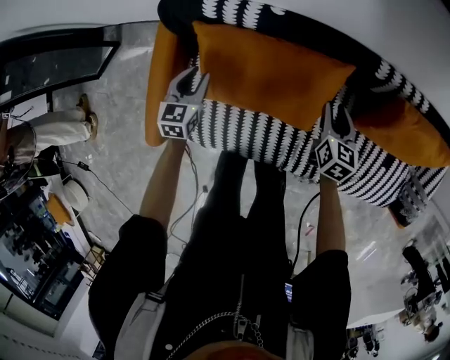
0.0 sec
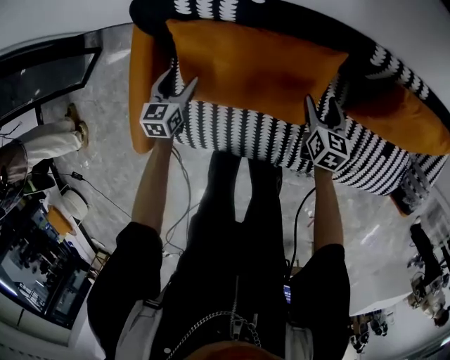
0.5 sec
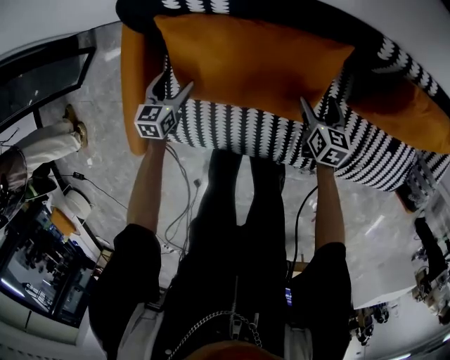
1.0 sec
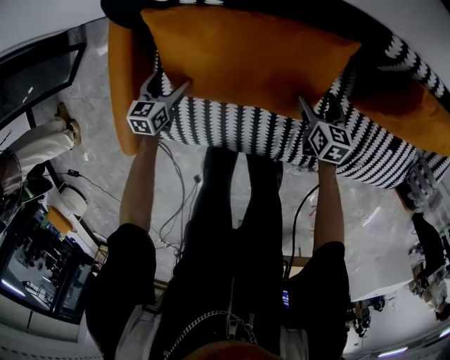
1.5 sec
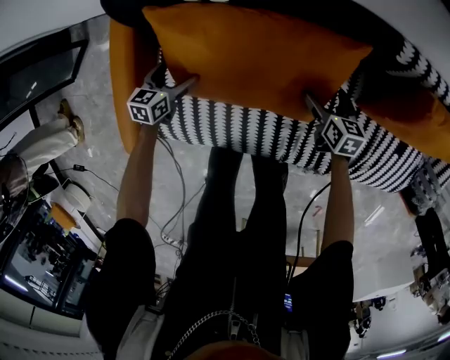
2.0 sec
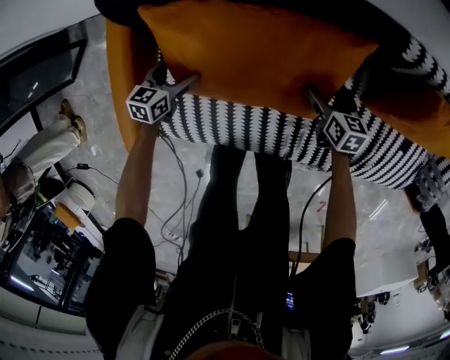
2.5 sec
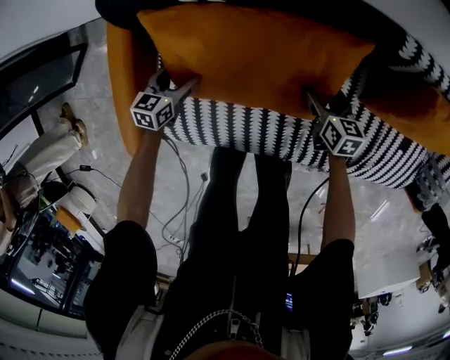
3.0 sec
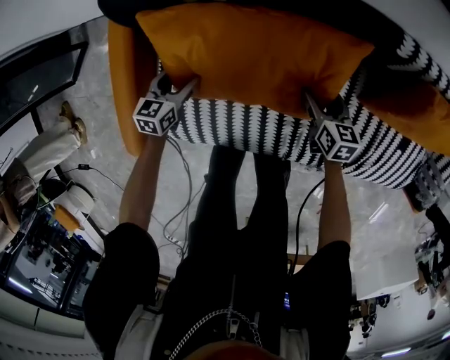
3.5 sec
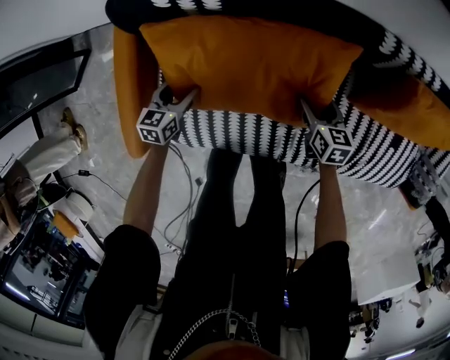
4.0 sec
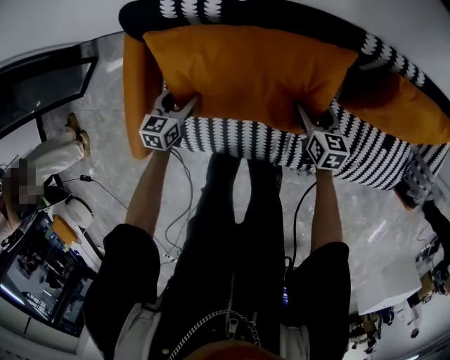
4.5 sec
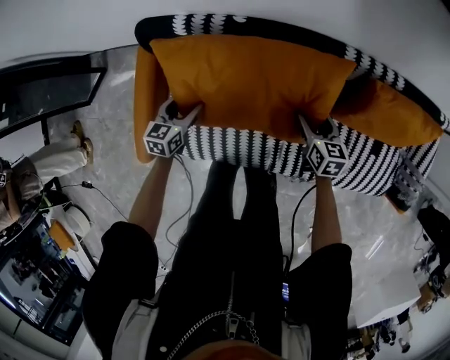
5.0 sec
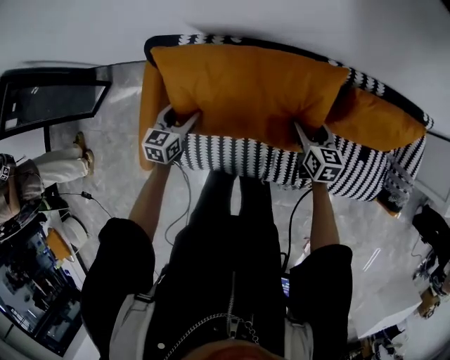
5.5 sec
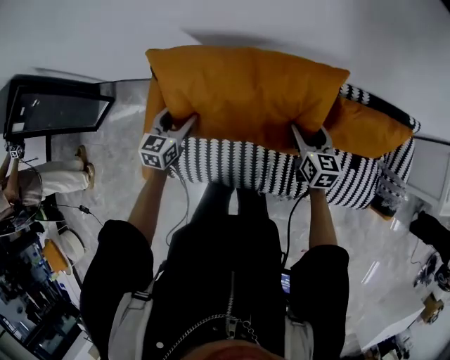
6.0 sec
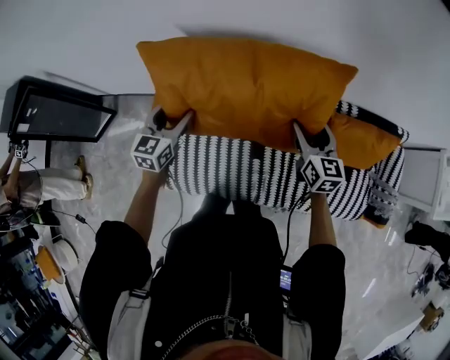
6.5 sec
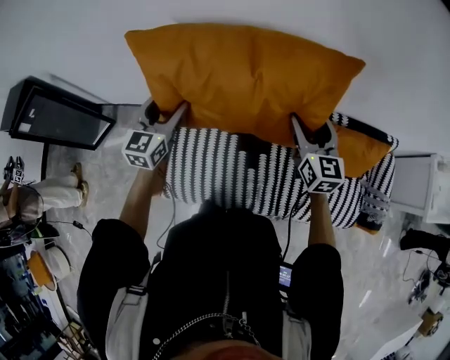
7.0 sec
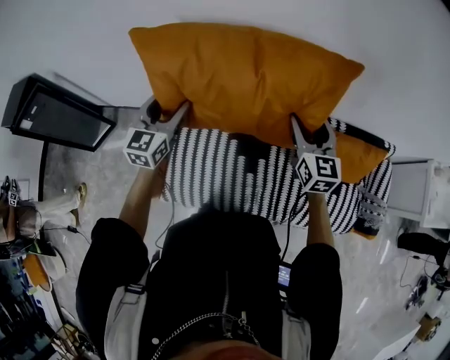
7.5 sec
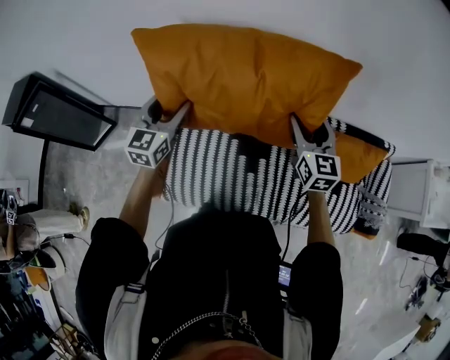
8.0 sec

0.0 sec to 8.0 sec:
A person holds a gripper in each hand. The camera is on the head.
0.0 sec to 2.0 sec: Both grippers move downward, approximately 20 cm. The left gripper changes its angle by about 20 degrees, and opens up, while the right gripper swivels some 20 degrees, and opens its fingers.
2.0 sec to 4.0 sec: The left gripper shifts by about 5 cm, and closes up. The right gripper moves about 5 cm, and closes up.
4.0 sec to 6.0 sec: Both grippers move upward, approximately 30 cm.
6.0 sec to 8.0 sec: Both grippers travel together upward, some 20 cm. The right gripper swivels approximately 20 degrees. The left gripper rotates roughly 20 degrees.

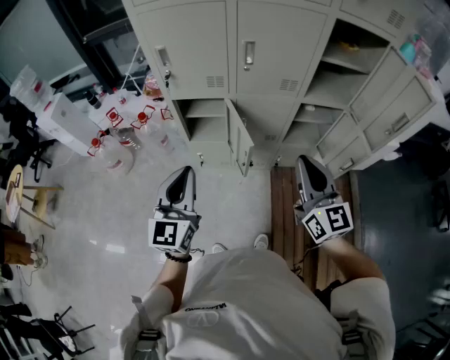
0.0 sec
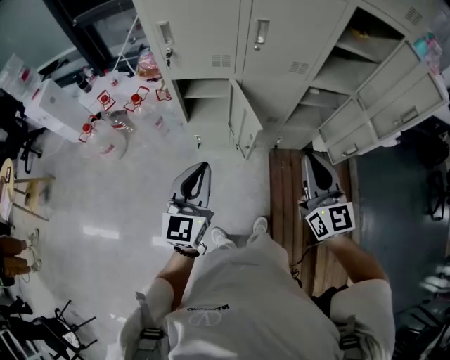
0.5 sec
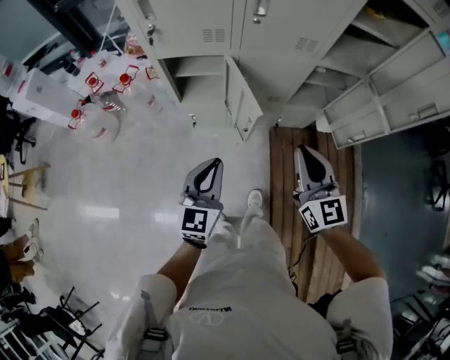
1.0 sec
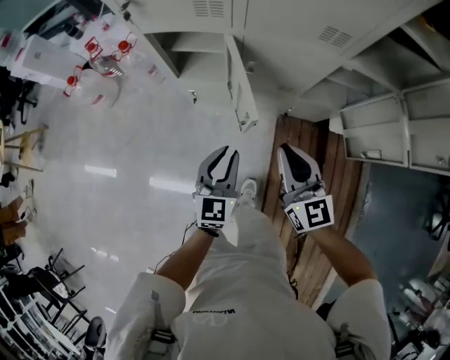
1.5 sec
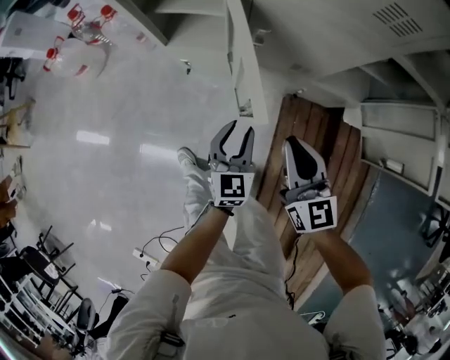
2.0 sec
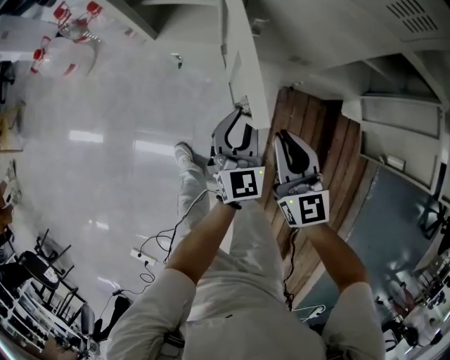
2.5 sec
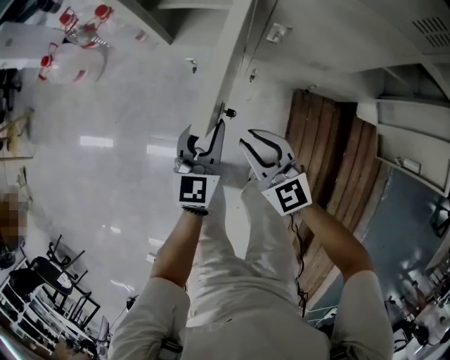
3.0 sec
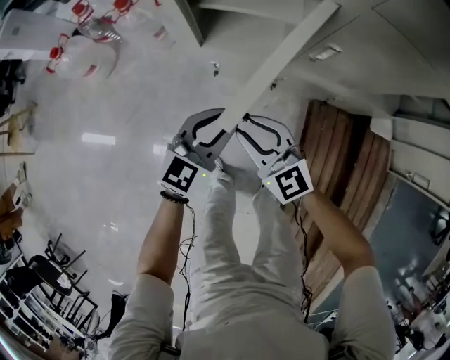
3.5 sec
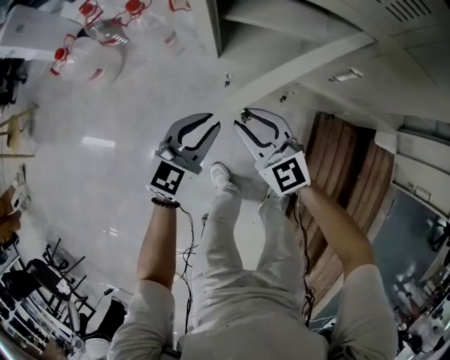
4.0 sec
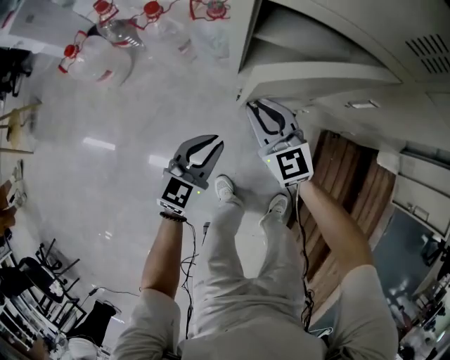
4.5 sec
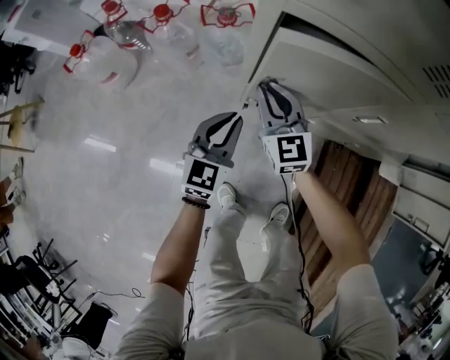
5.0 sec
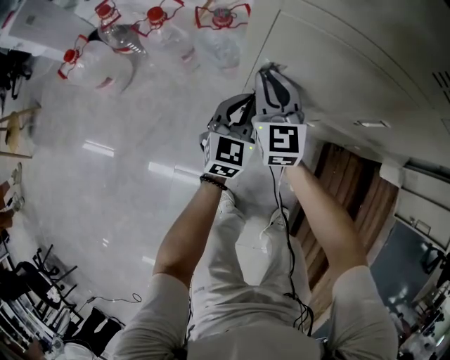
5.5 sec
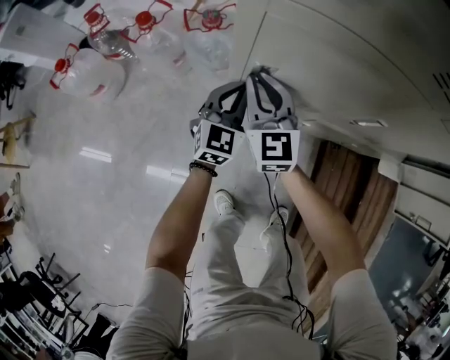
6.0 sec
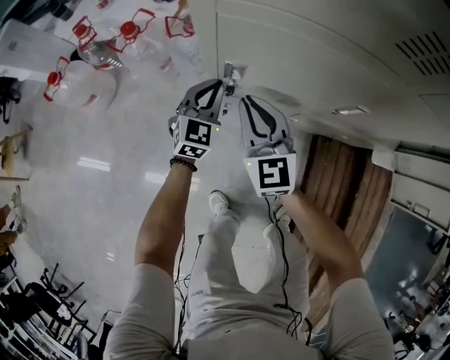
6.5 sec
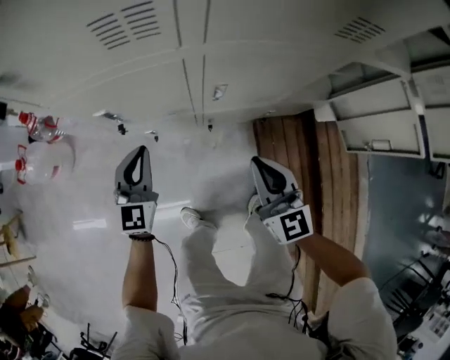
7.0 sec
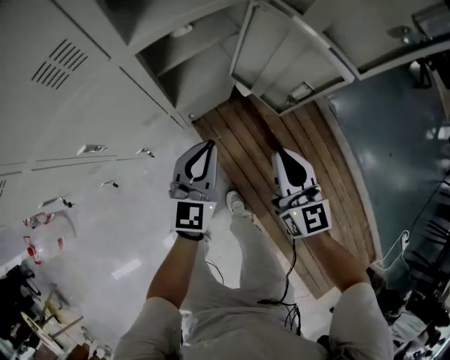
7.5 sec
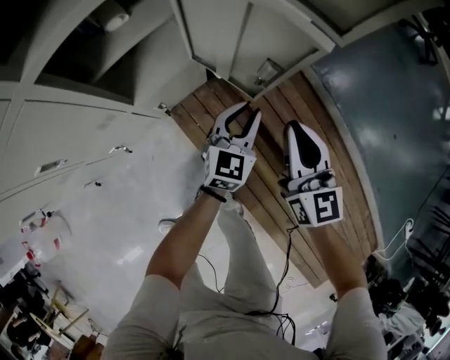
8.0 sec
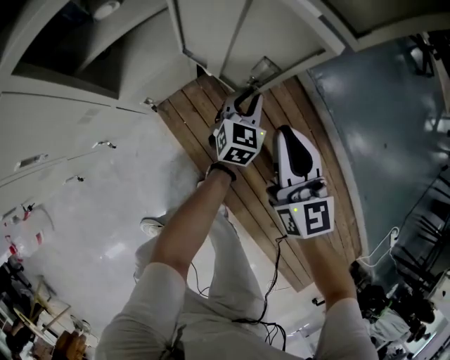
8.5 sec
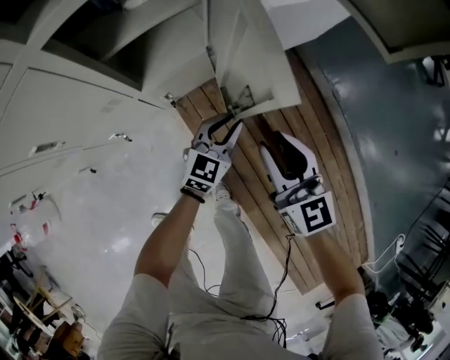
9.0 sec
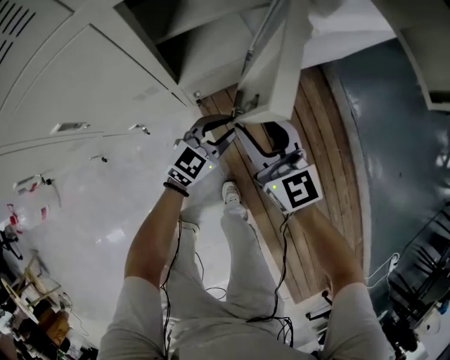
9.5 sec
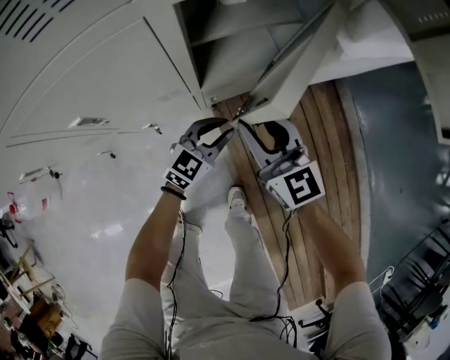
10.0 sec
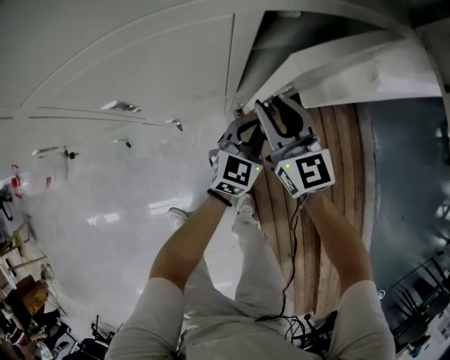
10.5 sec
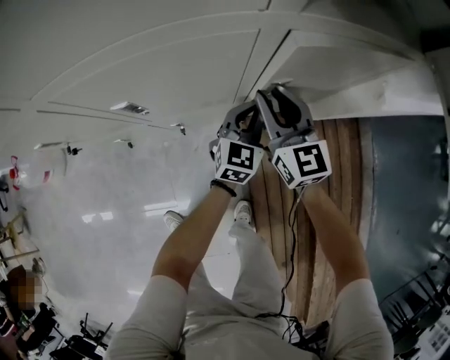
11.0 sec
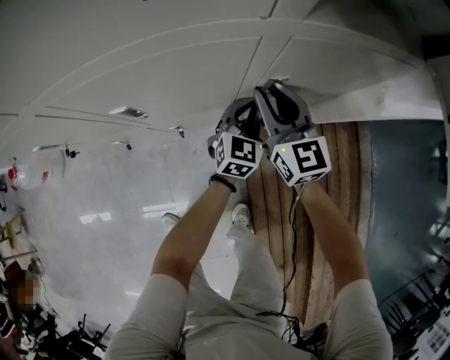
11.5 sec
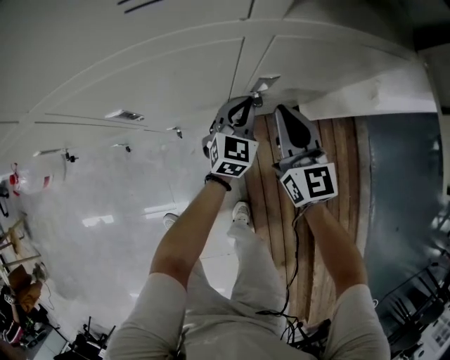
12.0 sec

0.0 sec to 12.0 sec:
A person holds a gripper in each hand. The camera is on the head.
0.0 sec to 2.0 sec: The left gripper heads downward, covering roughly 40 cm, rotates about 30 degrees, and opens up; the right gripper moves downward and forward, roughly 35 cm, and rotates about 20 degrees.
2.0 sec to 4.0 sec: Both grippers move to the left and forward, some 30 cm. The right gripper rotates some 30 degrees, and opens its fingers; the left gripper swivels about 30 degrees.
4.0 sec to 6.0 sec: Both grippers move forward, approximately 20 cm. The right gripper rotates about 30 degrees.
6.0 sec to 8.0 sec: The two grippers travel together, roughly 90 cm. The left gripper turns by approximately 50 degrees. Meanwhile the right gripper rotates some 50 degrees.
8.0 sec to 10.0 sec: Both grippers travel together to the left, approximately 25 cm. The right gripper rotates some 30 degrees, and opens.
10.0 sec to 12.0 sec: The left gripper heads forward, covering roughly 15 cm, and changes its angle by some 30 degrees. The right gripper heads forward, covering approximately 5 cm, and closes.

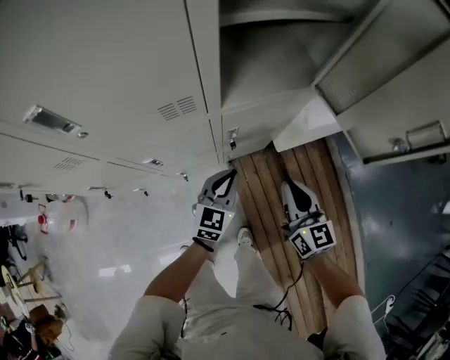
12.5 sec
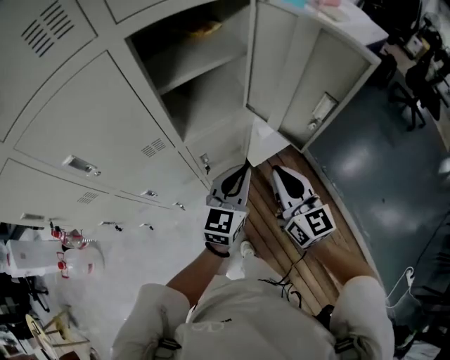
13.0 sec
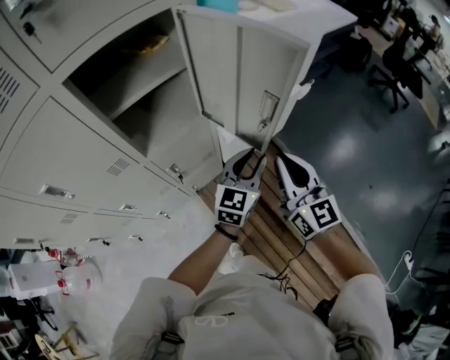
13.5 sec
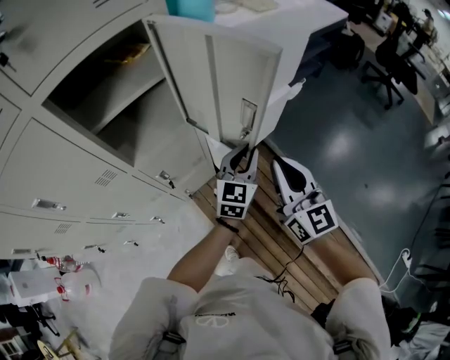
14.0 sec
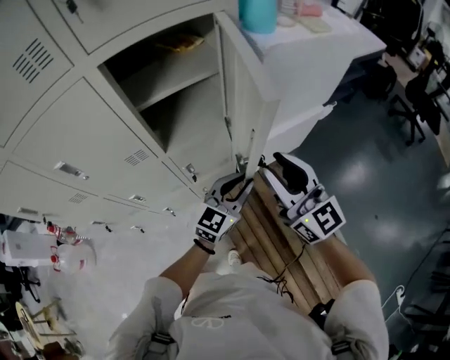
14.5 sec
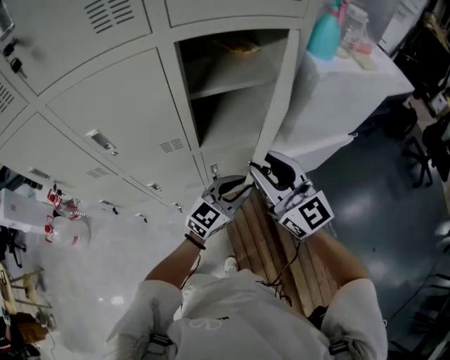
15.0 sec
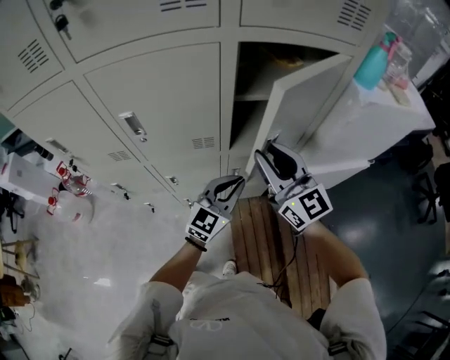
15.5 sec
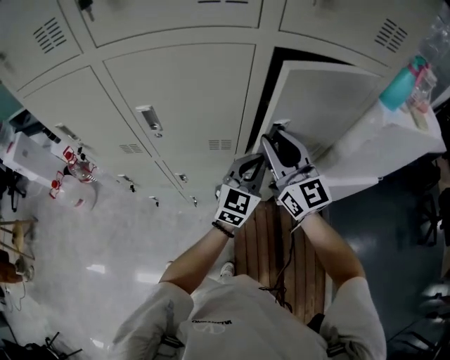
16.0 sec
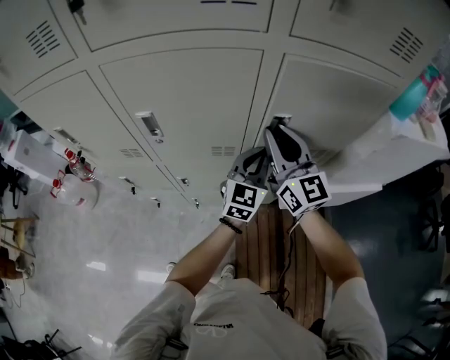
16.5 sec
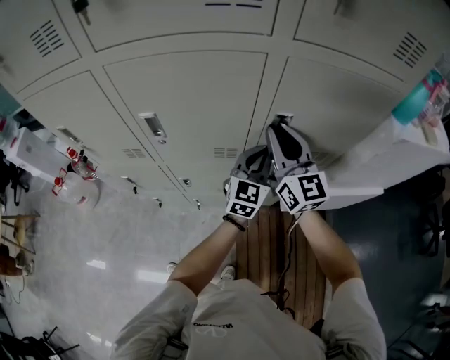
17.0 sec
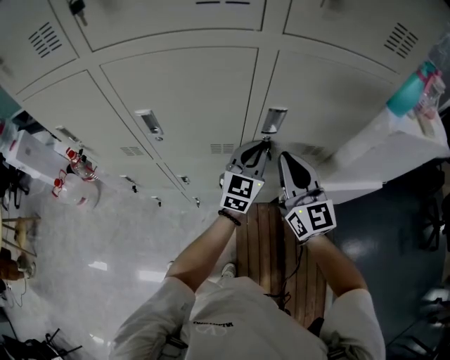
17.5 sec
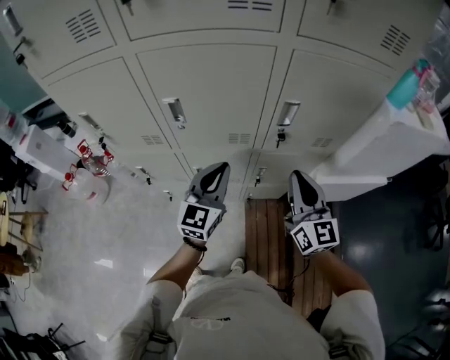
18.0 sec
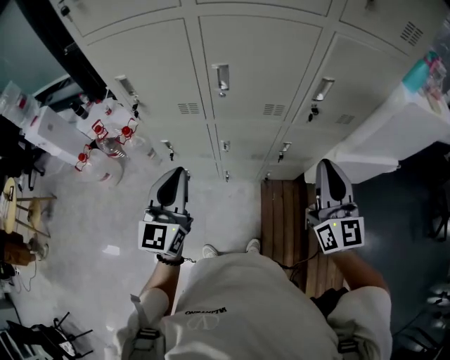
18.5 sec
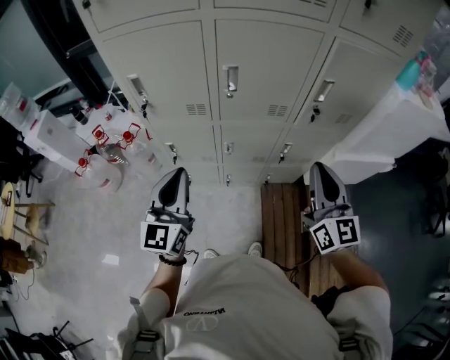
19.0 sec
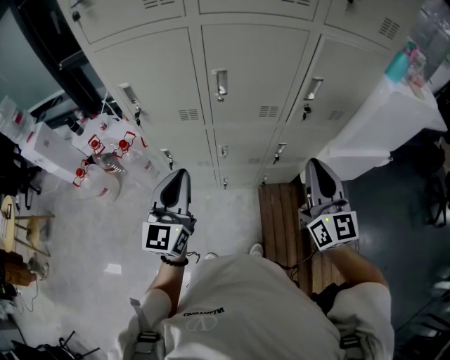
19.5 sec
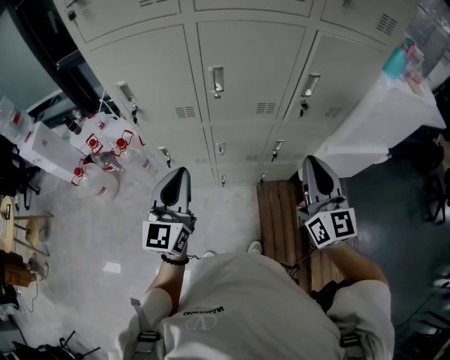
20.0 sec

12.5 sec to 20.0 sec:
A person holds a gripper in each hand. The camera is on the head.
12.5 sec to 14.5 sec: The right gripper moves upward and to the right, approximately 30 cm, turns by roughly 20 degrees, and opens up. The left gripper heads to the right and upward, covering about 30 cm, and rotates some 20 degrees.
14.5 sec to 16.5 sec: The left gripper changes place by some 30 cm, and rotates some 40 degrees. Meanwhile the right gripper ends up some 30 cm from where it was.
16.5 sec to 18.0 sec: The left gripper is displaced to the left and backward by roughly 20 cm, while the right gripper moves backward, some 15 cm.
18.0 sec to 20.0 sec: The left gripper travels to the left and backward by about 25 cm. Meanwhile the right gripper goes roughly 15 cm backward, to the left and upward.
